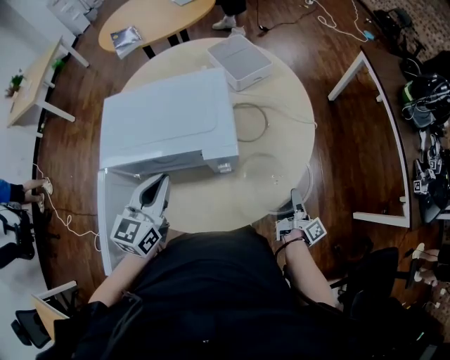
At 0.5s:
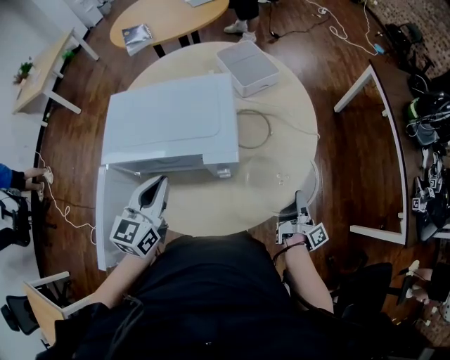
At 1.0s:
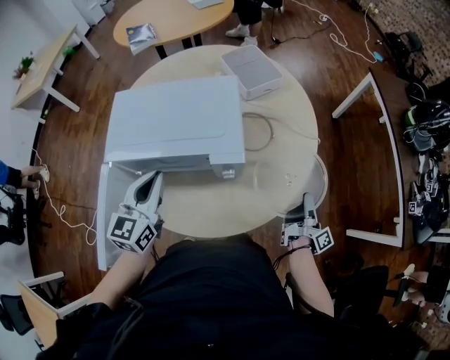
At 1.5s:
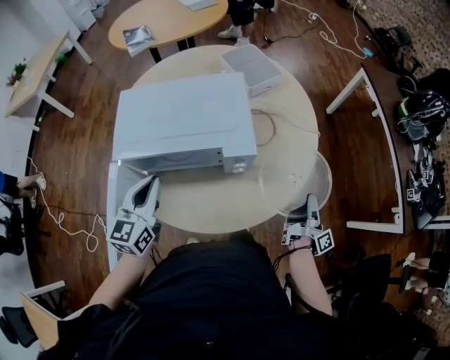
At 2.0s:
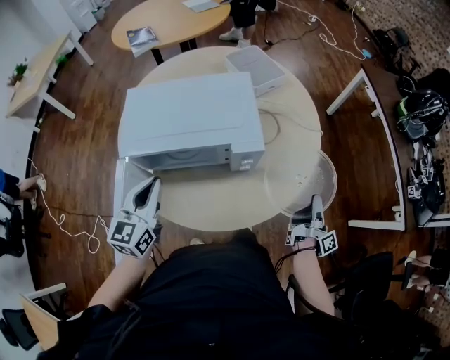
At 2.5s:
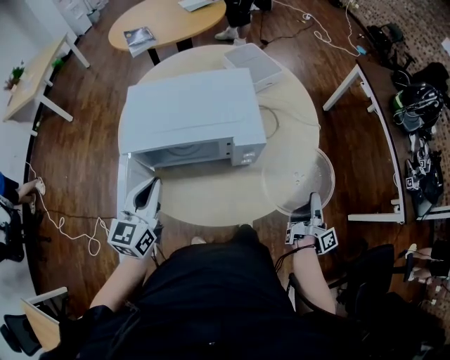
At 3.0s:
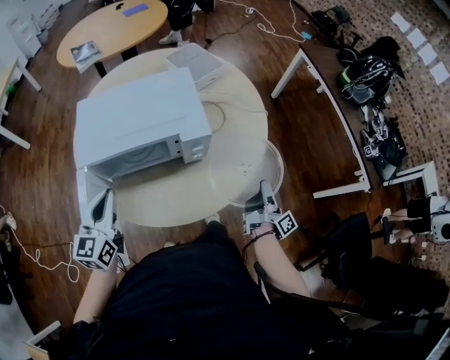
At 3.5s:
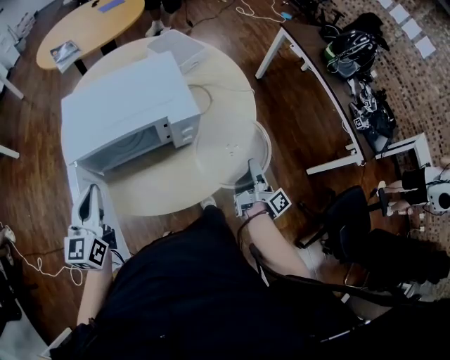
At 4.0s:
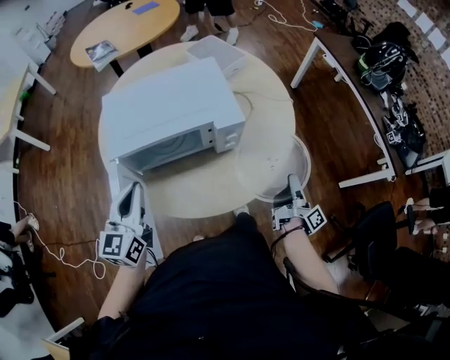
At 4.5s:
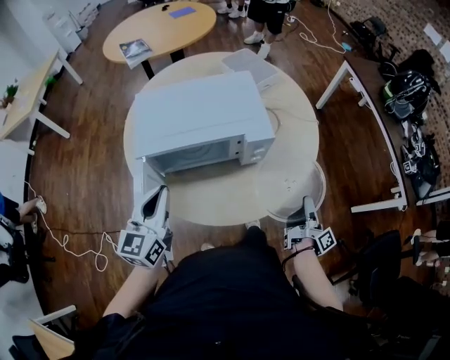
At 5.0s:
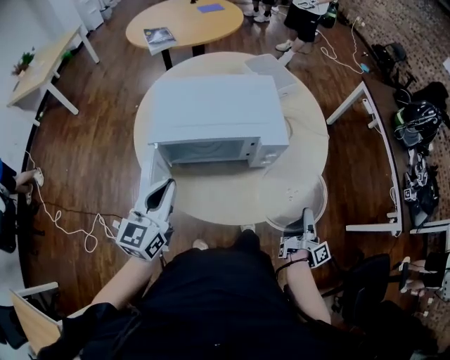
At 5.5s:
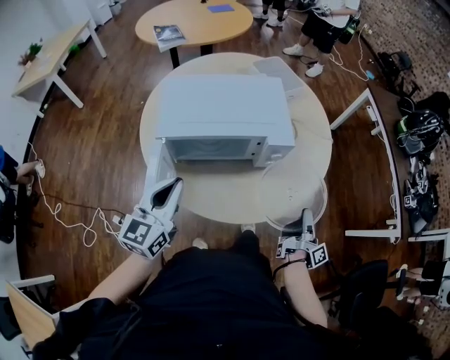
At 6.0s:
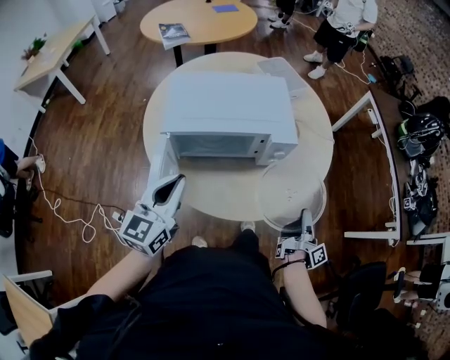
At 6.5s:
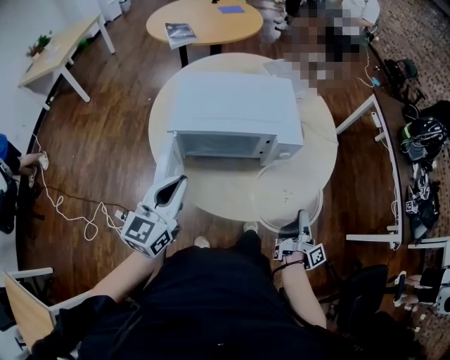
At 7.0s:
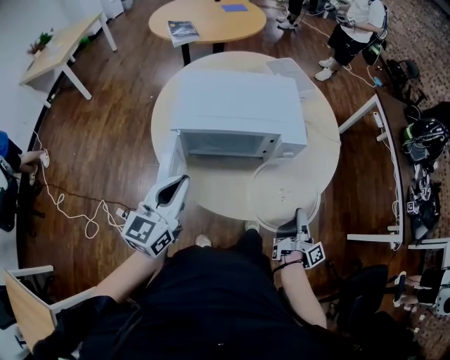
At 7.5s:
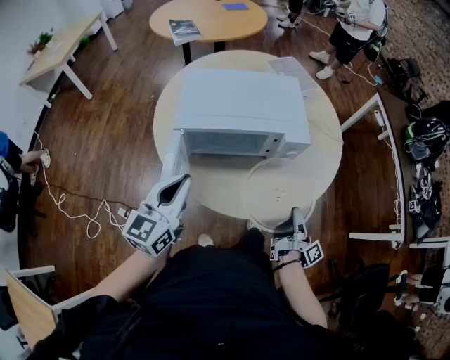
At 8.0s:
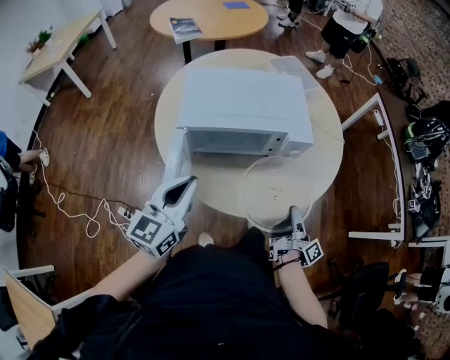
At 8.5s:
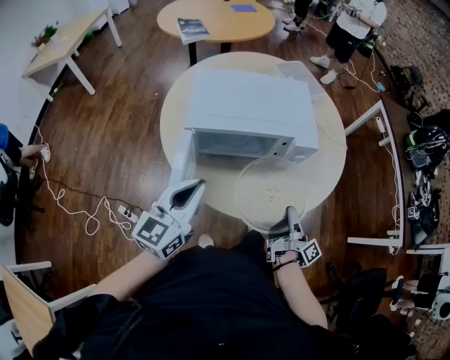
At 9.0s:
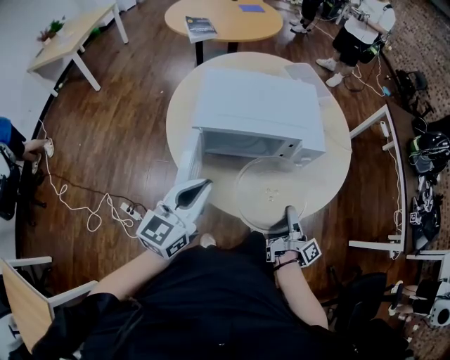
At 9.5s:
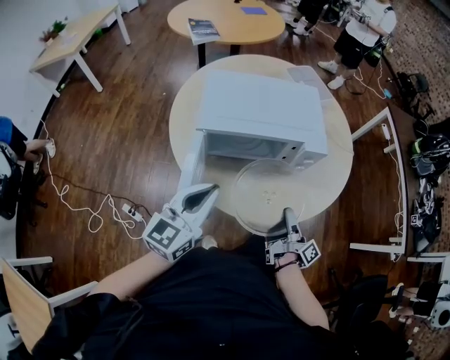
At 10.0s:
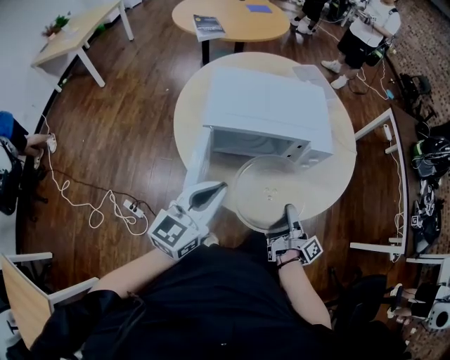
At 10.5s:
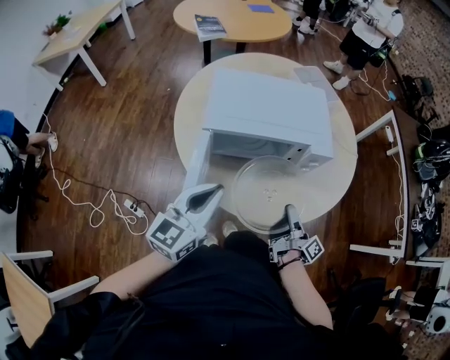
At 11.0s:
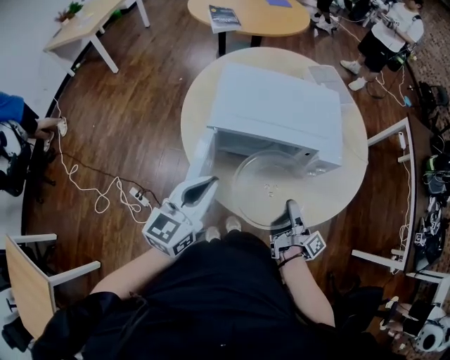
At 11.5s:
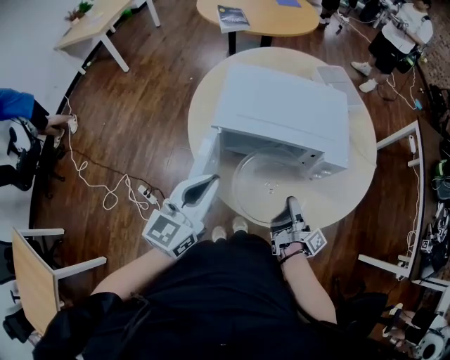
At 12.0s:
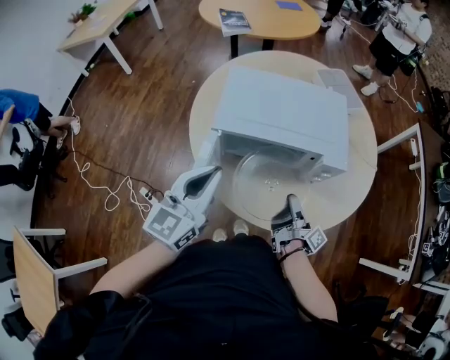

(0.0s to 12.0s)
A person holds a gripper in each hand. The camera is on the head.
0.0s - 2.0s: The left gripper moves some 10 cm.
10.0s - 12.0s: The left gripper shifts by roughly 5 cm.

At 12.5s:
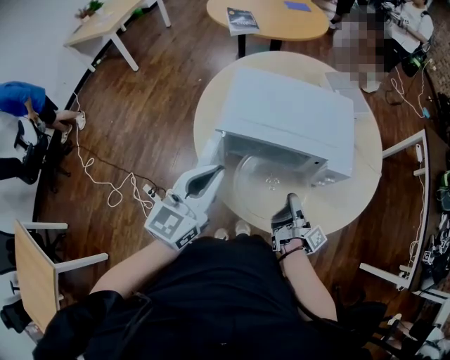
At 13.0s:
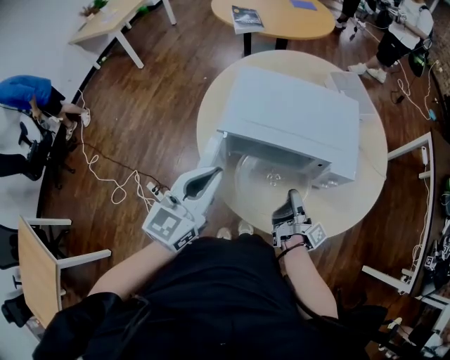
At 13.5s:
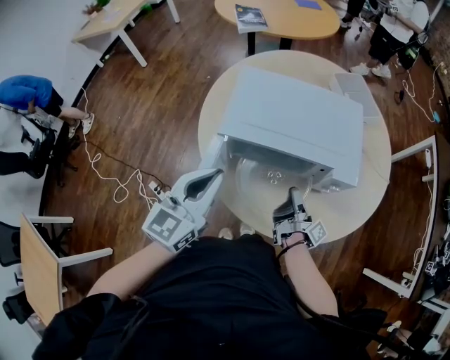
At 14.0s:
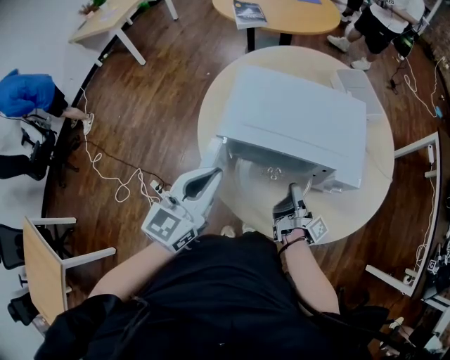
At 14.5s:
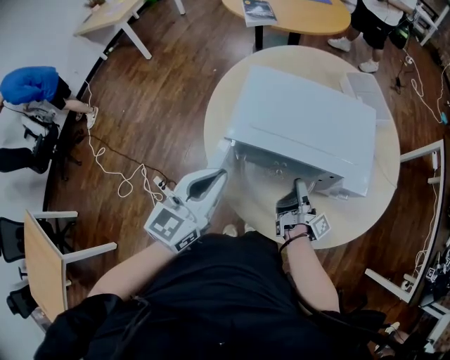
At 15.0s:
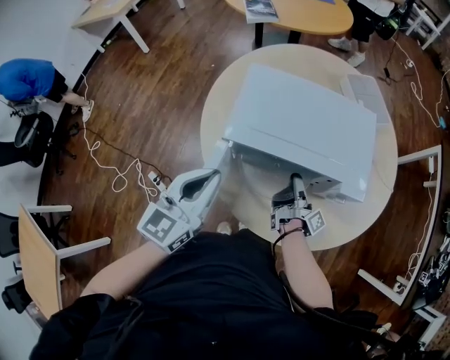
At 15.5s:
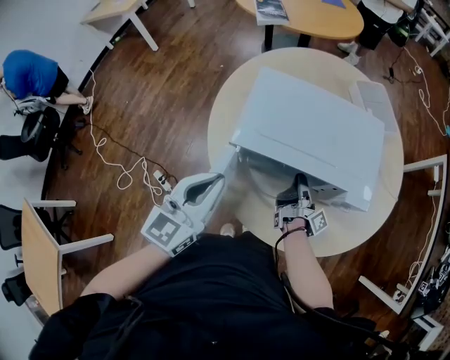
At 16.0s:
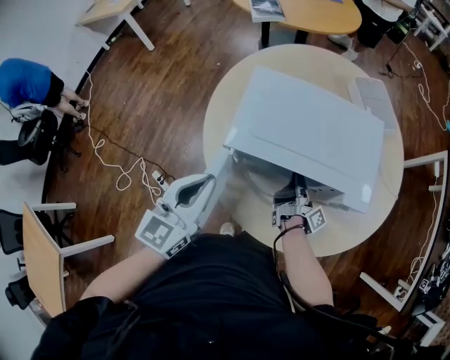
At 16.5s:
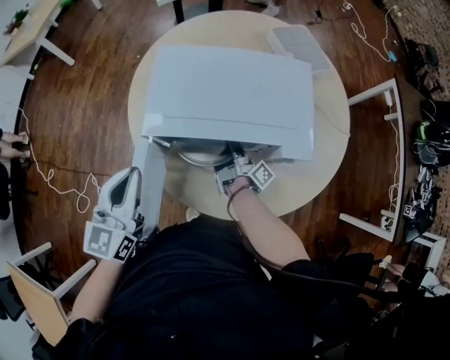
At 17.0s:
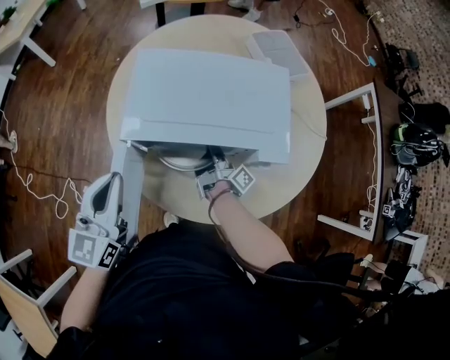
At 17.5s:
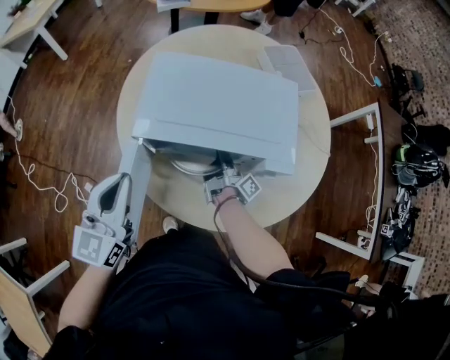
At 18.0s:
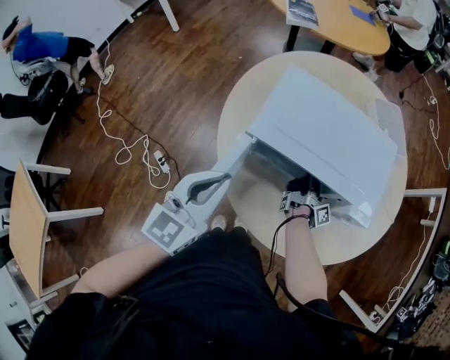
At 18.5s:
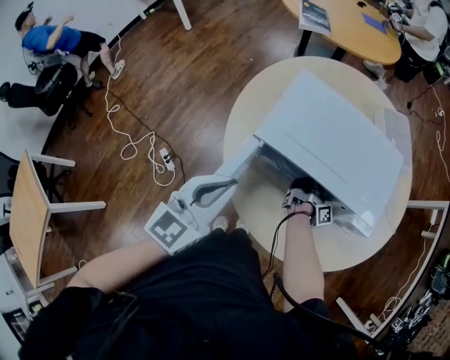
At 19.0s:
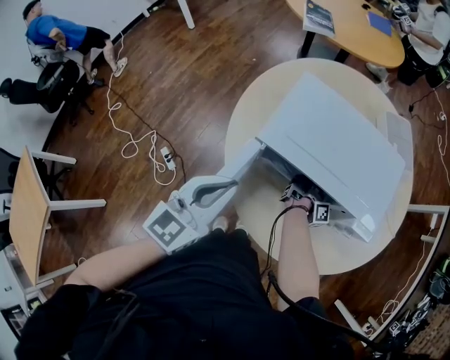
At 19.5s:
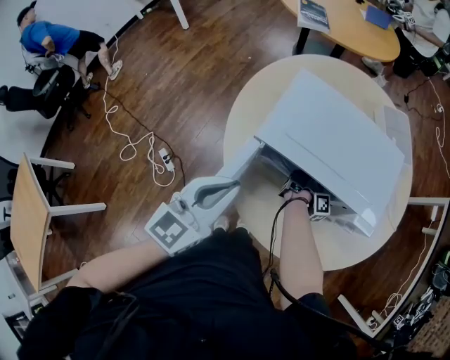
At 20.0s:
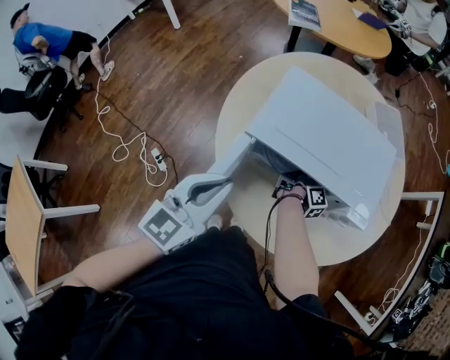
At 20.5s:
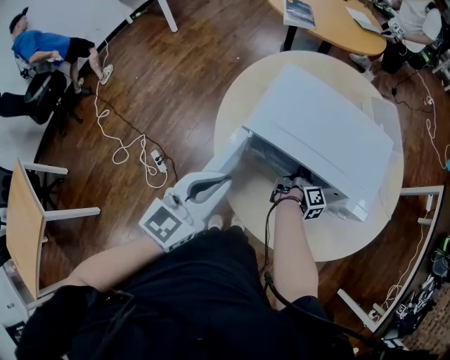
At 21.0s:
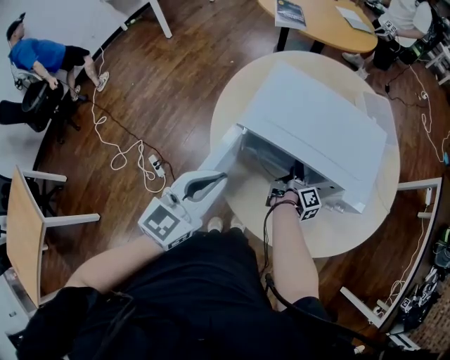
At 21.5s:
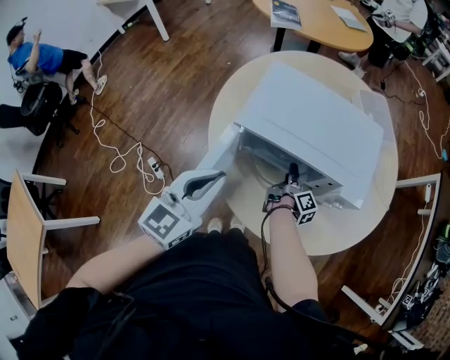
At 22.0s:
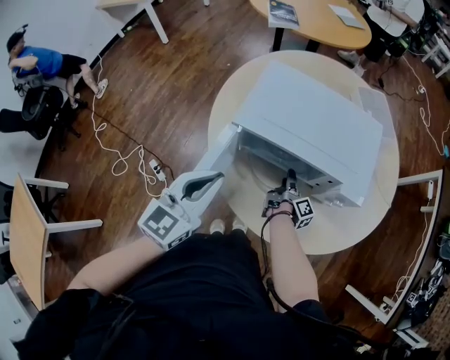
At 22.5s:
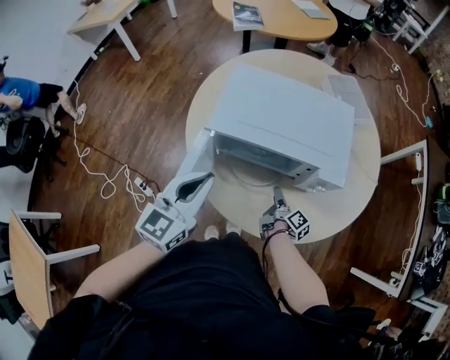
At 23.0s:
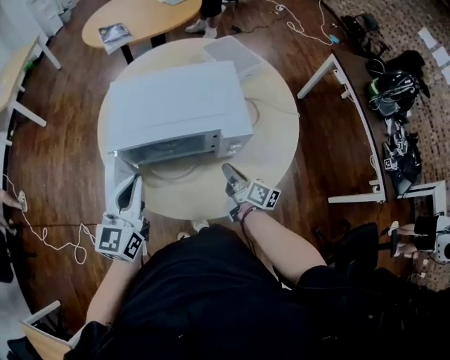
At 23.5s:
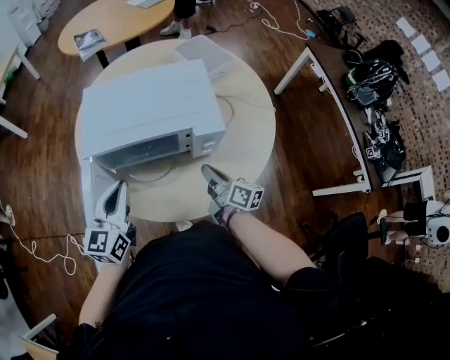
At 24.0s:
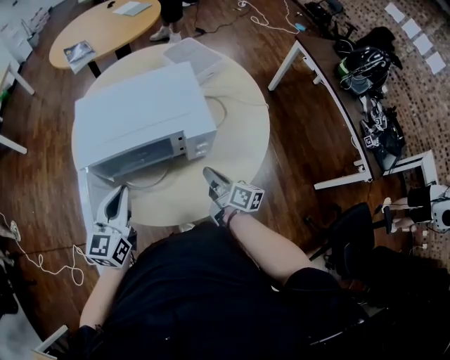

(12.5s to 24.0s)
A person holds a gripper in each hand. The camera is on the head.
16.5s - 18.5s: The left gripper changes place by approximately 5 cm.
22.0s - 24.0s: The left gripper ends up some 10 cm from where it was.

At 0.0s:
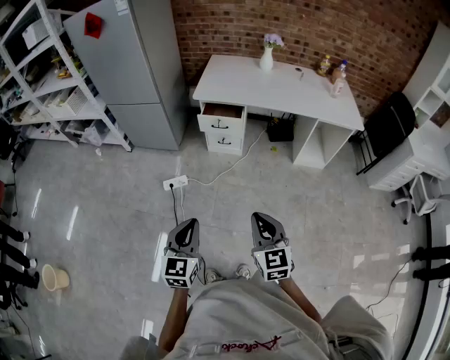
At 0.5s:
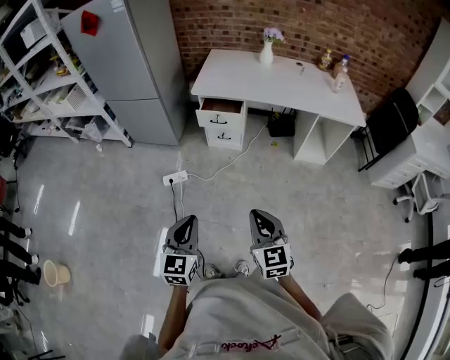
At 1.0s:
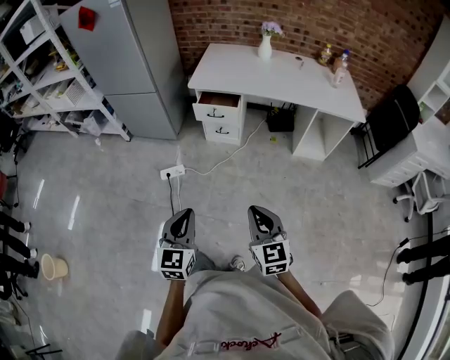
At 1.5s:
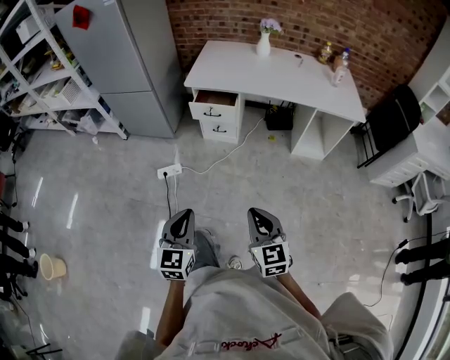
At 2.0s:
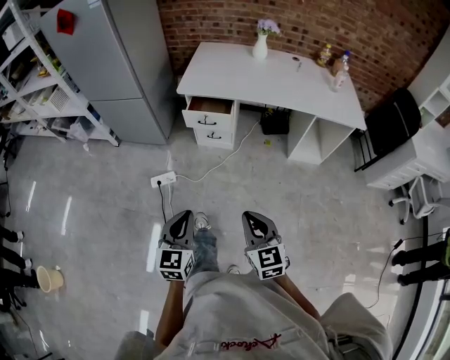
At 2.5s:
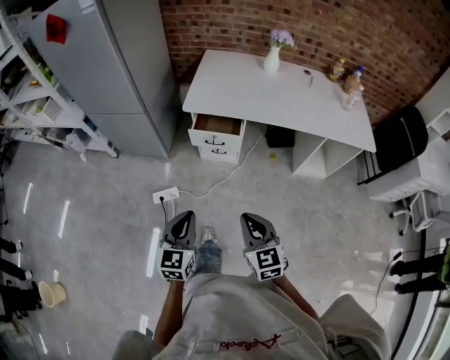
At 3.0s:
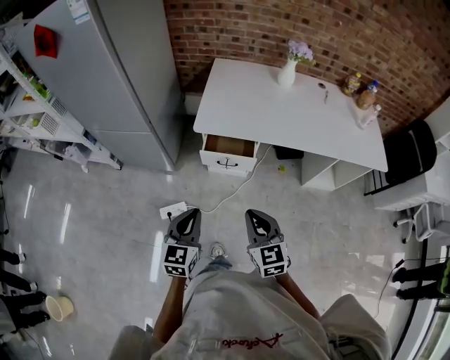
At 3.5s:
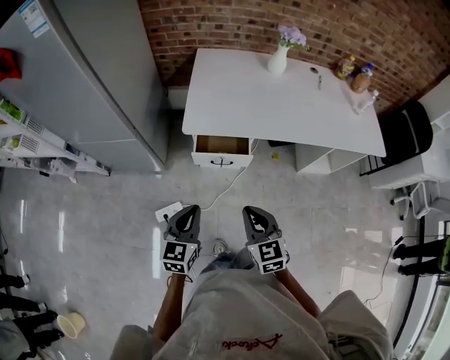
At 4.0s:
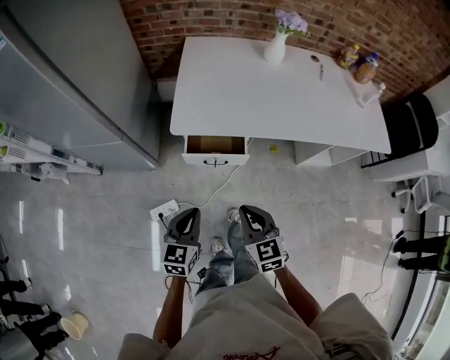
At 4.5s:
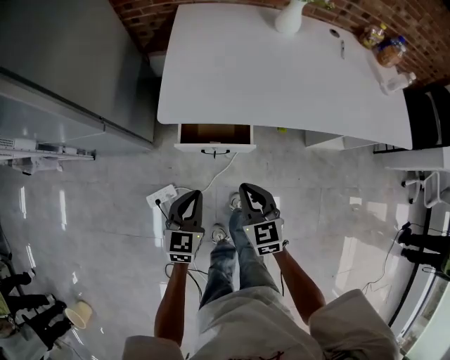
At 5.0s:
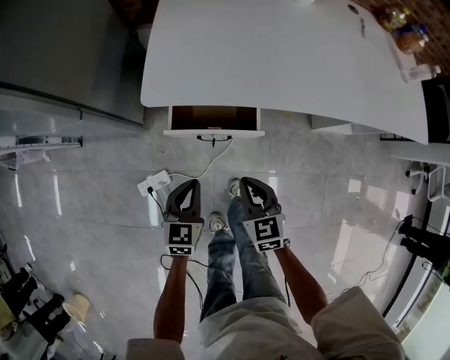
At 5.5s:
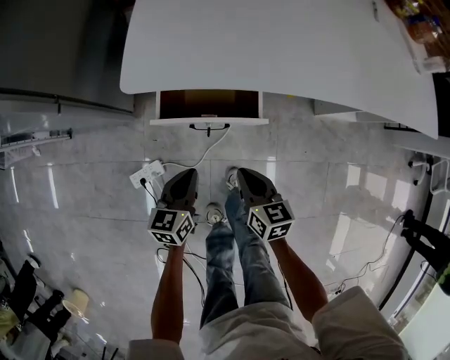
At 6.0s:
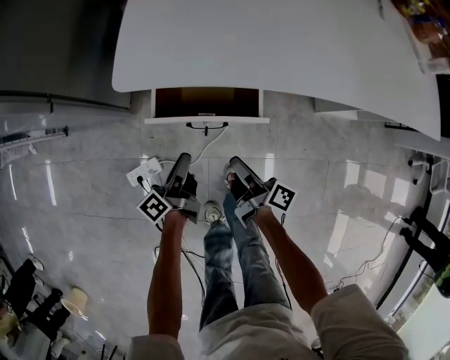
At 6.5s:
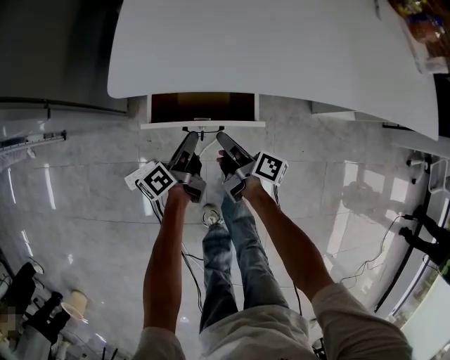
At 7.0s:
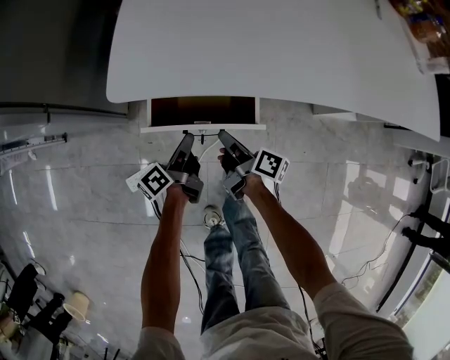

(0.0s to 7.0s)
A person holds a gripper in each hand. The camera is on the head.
0.0s - 2.0s: The right gripper heads forward, covering roughly 10 cm. The left gripper heads forward and to the right, covering some 10 cm.
2.0s - 3.5s: The right gripper is displaced forward and to the left by about 40 cm. Meanwhile the left gripper goes some 40 cm forward.
3.5s - 5.0s: Both grippers move downward and forward, approximately 30 cm.
5.0s - 7.0s: The two grippers go approximately 20 cm downward and forward. The left gripper twists approximately 70 degrees counterclockwise, seen from behind. The right gripper twists about 80 degrees clockwise, seen from behind, and opens, then closes again.
